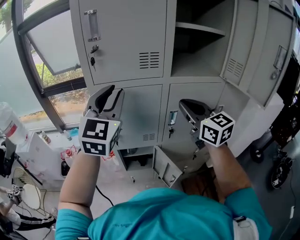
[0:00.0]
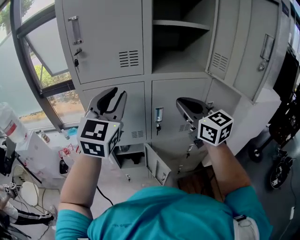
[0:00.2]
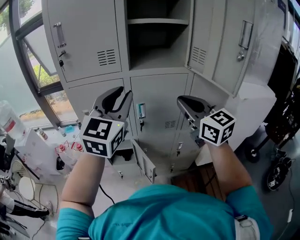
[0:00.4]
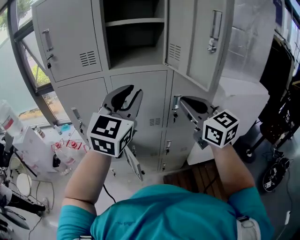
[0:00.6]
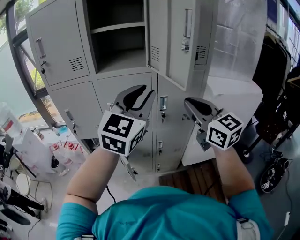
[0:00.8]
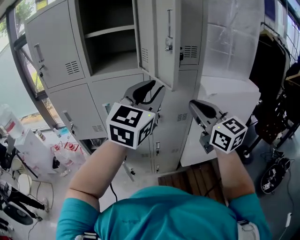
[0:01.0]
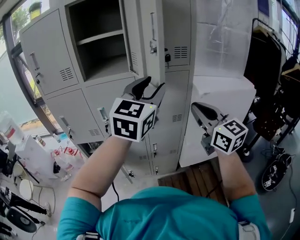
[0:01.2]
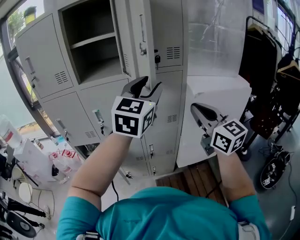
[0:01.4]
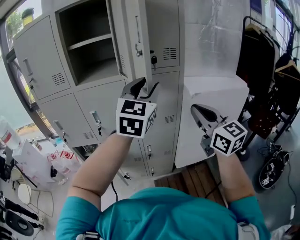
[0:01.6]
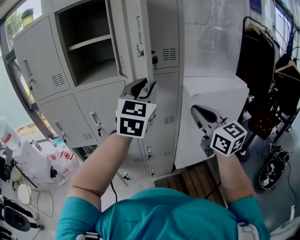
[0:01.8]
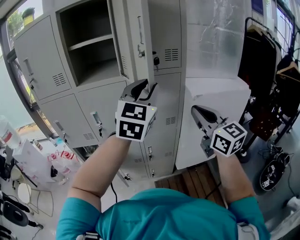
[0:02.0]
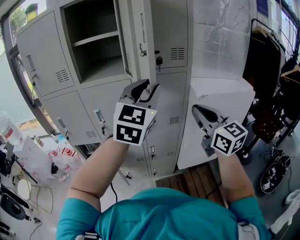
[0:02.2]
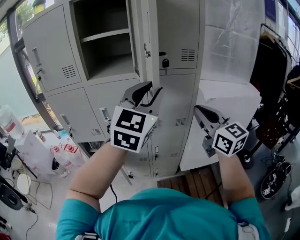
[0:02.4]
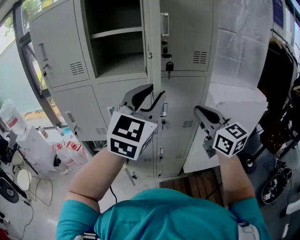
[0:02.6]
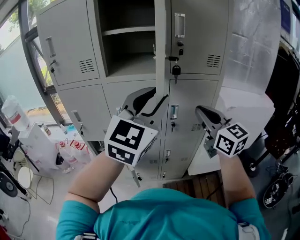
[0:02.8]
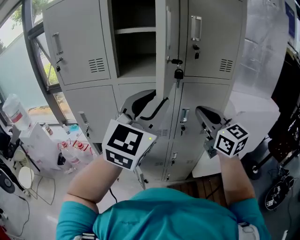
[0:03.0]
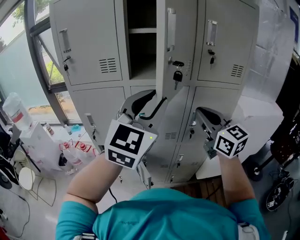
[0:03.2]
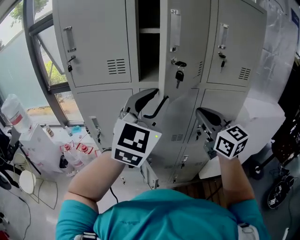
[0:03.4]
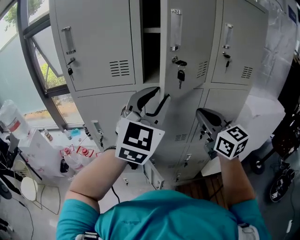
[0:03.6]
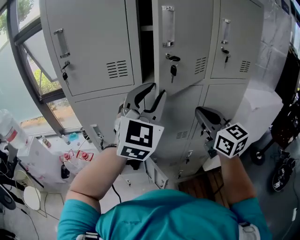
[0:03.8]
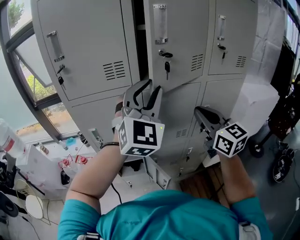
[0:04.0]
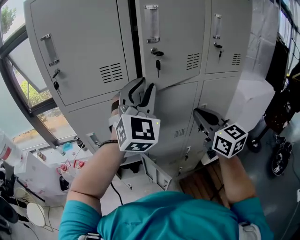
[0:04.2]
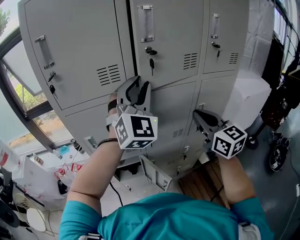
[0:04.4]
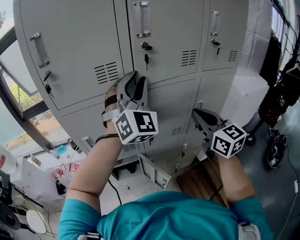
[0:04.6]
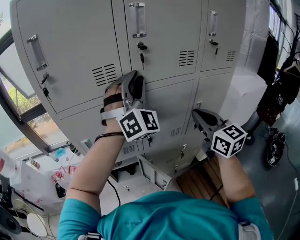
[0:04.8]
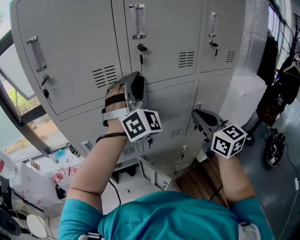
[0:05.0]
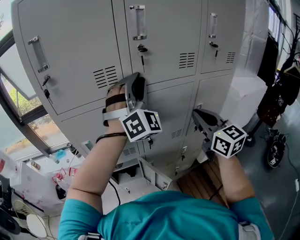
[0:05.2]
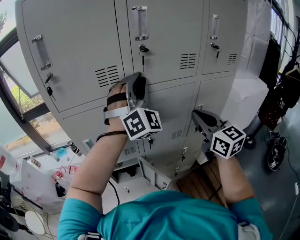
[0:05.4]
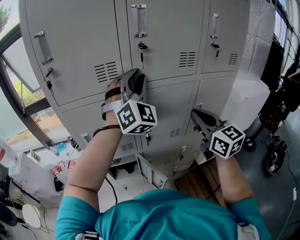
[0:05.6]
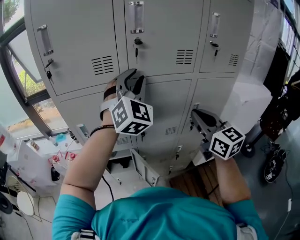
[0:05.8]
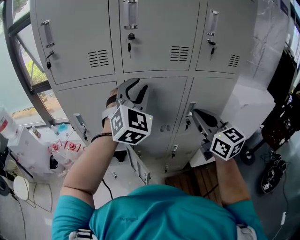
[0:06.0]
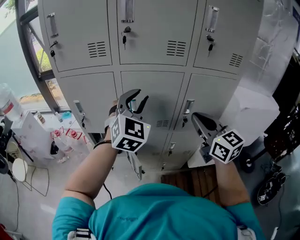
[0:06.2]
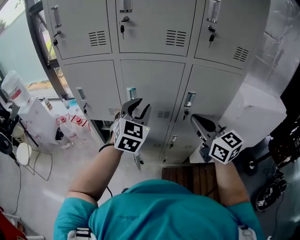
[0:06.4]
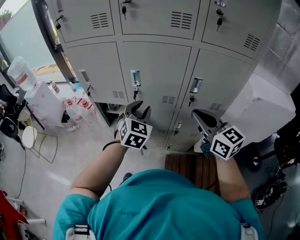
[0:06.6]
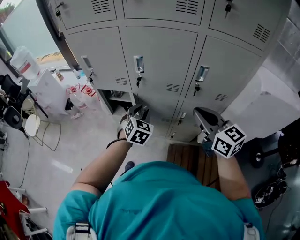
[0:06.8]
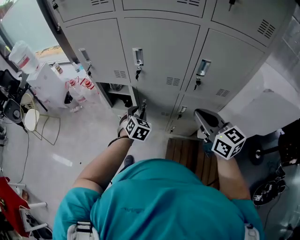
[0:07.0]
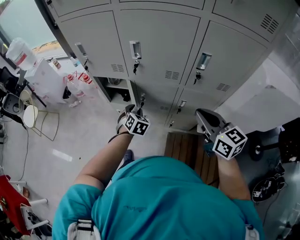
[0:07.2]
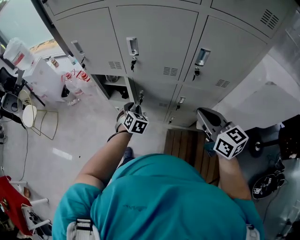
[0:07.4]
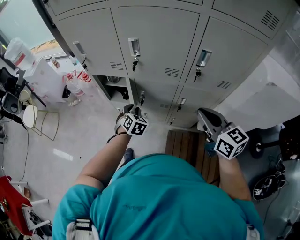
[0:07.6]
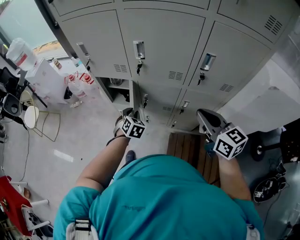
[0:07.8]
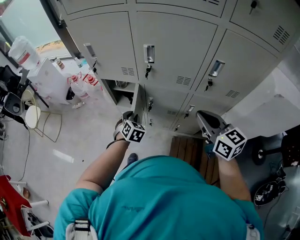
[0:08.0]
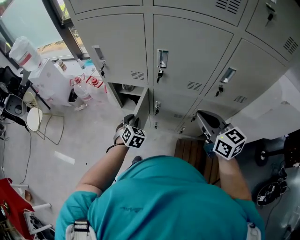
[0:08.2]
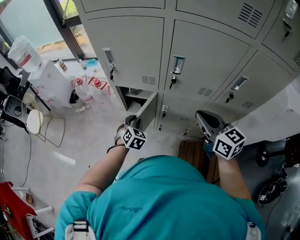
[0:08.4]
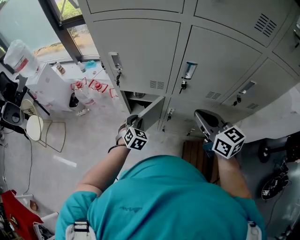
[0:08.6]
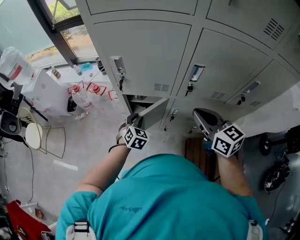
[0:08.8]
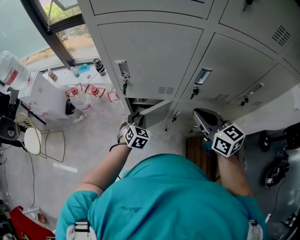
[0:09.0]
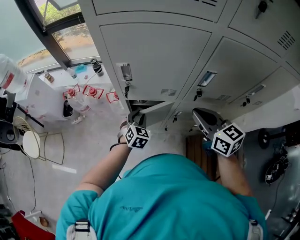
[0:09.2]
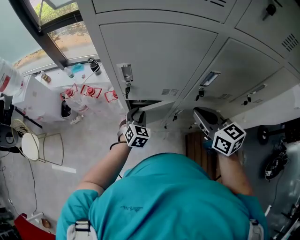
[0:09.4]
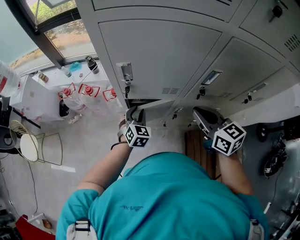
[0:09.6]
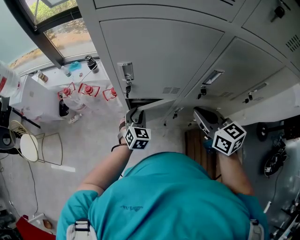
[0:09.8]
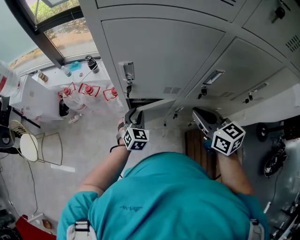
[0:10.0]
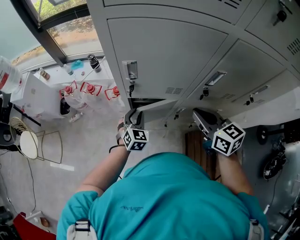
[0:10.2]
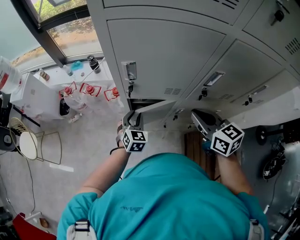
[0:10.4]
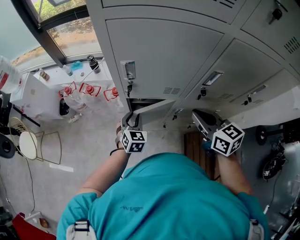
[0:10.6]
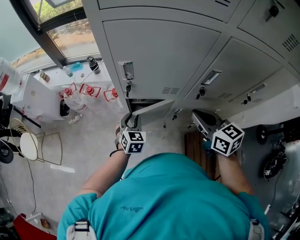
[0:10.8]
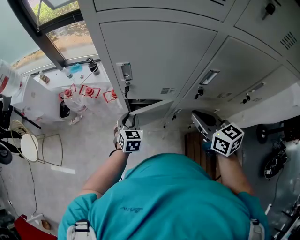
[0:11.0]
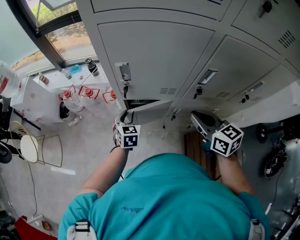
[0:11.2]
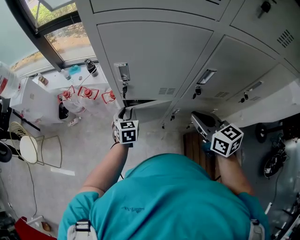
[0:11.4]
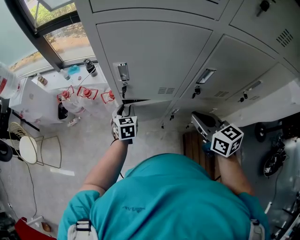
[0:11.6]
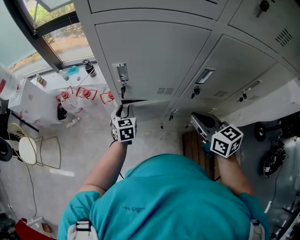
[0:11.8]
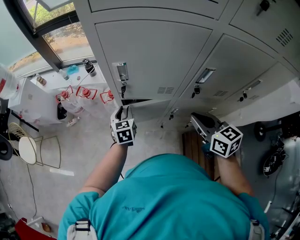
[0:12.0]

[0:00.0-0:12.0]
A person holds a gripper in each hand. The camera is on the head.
0:00.0 to 0:01.6: The two grippers travel together, to the right, roughly 50 cm. The left gripper opens up.
0:01.6 to 0:03.0: The right gripper moves to the left and forward, roughly 20 cm. Meanwhile the left gripper is displaced to the left by roughly 20 cm.
0:03.0 to 0:04.4: The right gripper heads to the left, covering approximately 15 cm. Meanwhile the left gripper moves forward and to the left, approximately 25 cm, and swivels roughly 20 degrees.
0:04.4 to 0:06.0: The right gripper is displaced to the right by approximately 5 cm; the left gripper goes about 10 cm to the right and downward.
0:06.0 to 0:07.6: The left gripper travels downward by approximately 50 cm, and tilts its fingers roughly 40 degrees downward, while the right gripper goes approximately 20 cm downward, and turns by approximately 30 degrees.
0:07.6 to 0:09.0: The two grippers go about 30 cm to the left and forward.
0:09.0 to 0:10.4: The right gripper moves approximately 5 cm.
0:10.4 to 0:12.0: The left gripper changes place by some 5 cm, and swivels about 30 degrees.

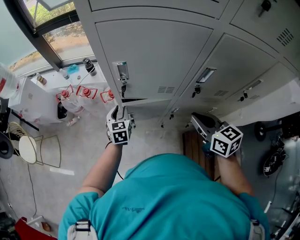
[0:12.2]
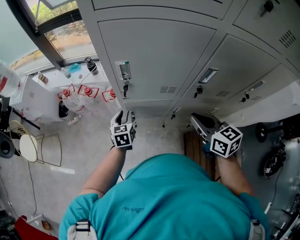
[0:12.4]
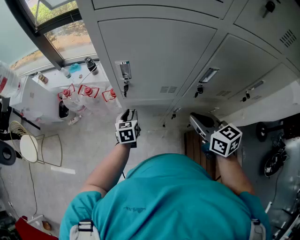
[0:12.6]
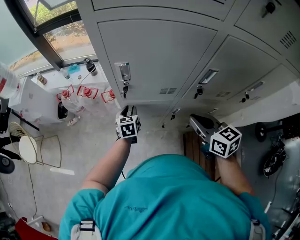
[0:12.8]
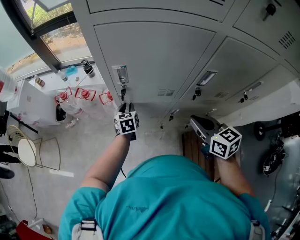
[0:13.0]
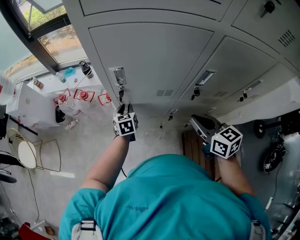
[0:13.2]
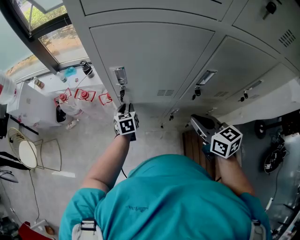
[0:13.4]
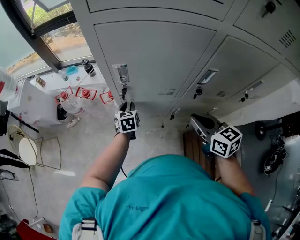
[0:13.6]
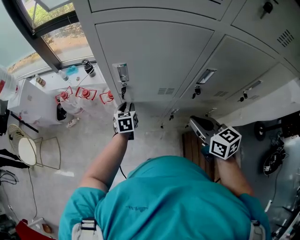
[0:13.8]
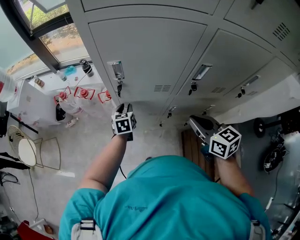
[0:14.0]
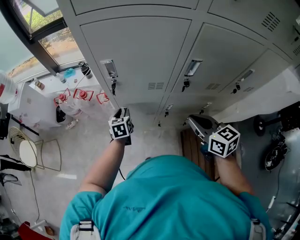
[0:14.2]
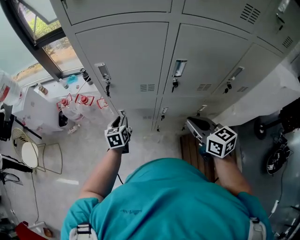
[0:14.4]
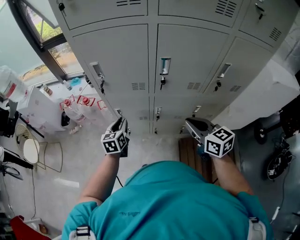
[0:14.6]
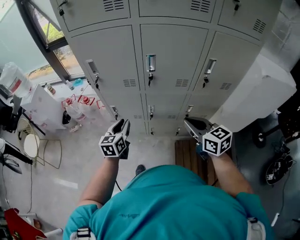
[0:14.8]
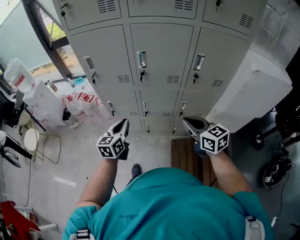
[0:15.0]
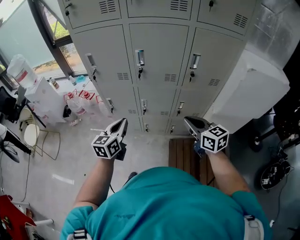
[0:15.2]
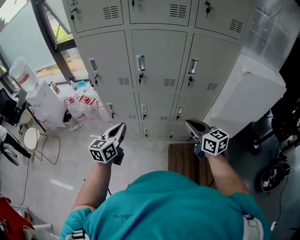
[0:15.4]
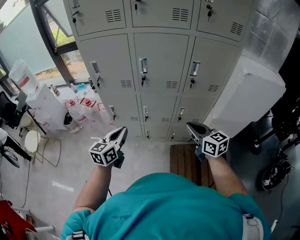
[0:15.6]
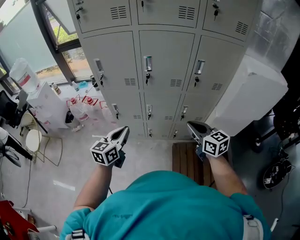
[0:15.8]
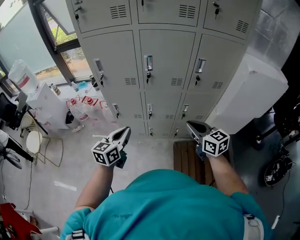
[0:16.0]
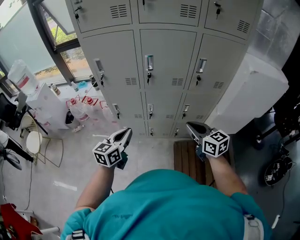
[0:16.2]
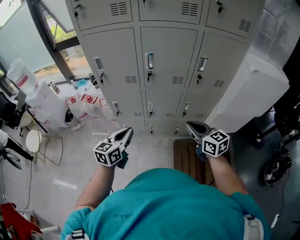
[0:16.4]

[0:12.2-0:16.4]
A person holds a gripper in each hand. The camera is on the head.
0:12.2 to 0:13.6: The left gripper shifts by roughly 5 cm.
0:13.6 to 0:15.0: The left gripper moves backward, upward and to the right, roughly 40 cm, and rotates about 30 degrees. Meanwhile the right gripper travels backward and to the right by some 30 cm.
0:15.0 to 0:16.4: The left gripper goes approximately 5 cm backward.

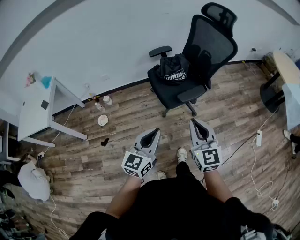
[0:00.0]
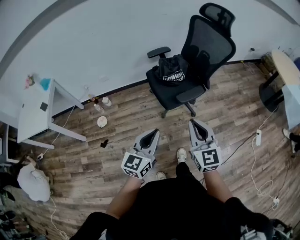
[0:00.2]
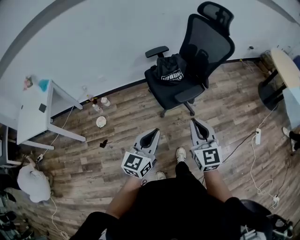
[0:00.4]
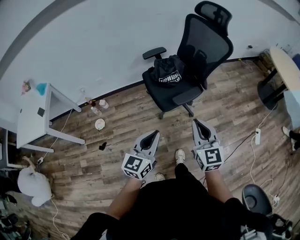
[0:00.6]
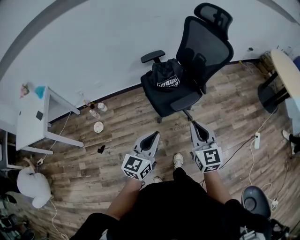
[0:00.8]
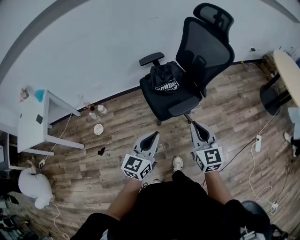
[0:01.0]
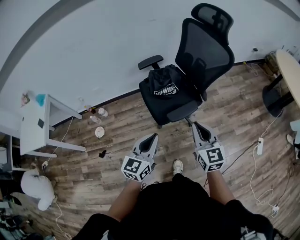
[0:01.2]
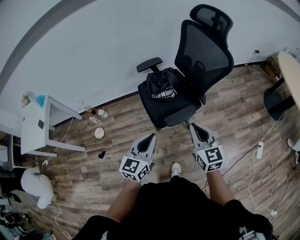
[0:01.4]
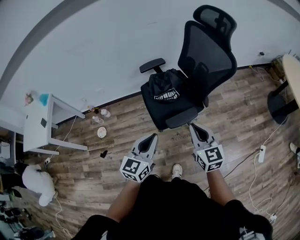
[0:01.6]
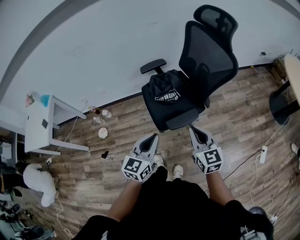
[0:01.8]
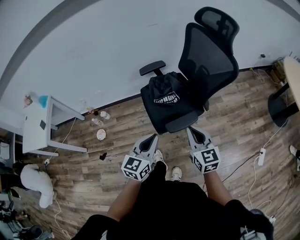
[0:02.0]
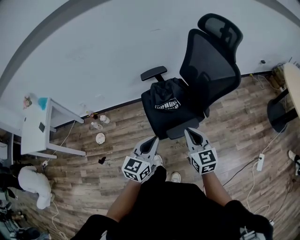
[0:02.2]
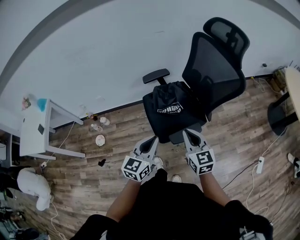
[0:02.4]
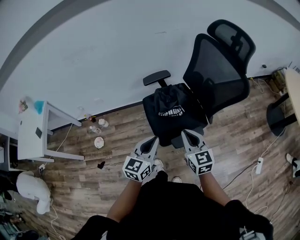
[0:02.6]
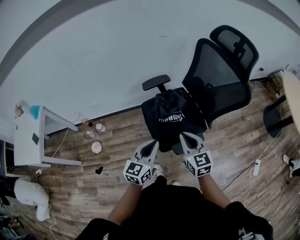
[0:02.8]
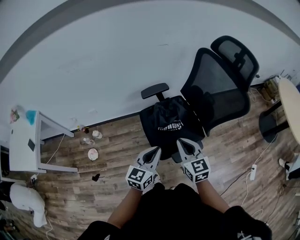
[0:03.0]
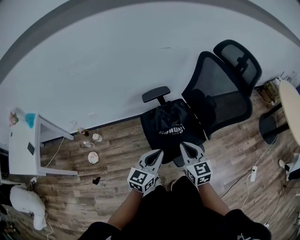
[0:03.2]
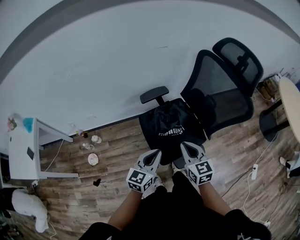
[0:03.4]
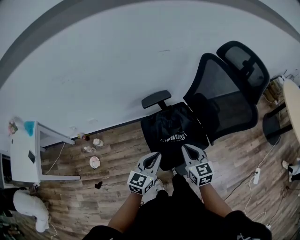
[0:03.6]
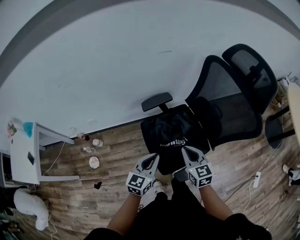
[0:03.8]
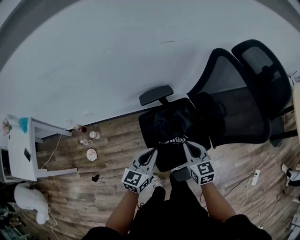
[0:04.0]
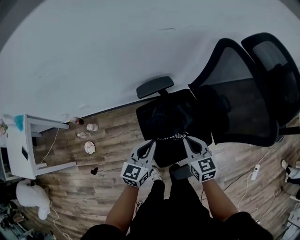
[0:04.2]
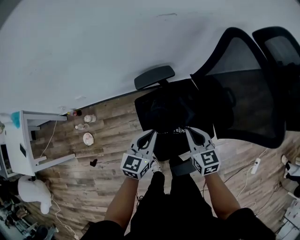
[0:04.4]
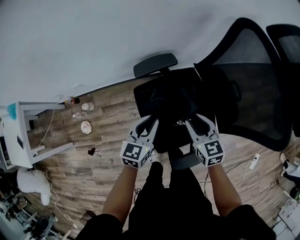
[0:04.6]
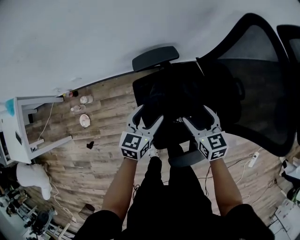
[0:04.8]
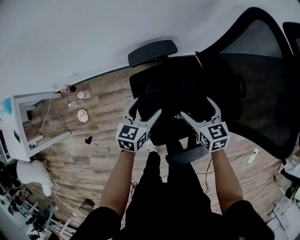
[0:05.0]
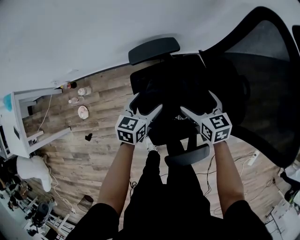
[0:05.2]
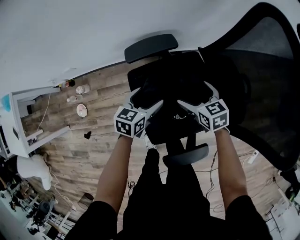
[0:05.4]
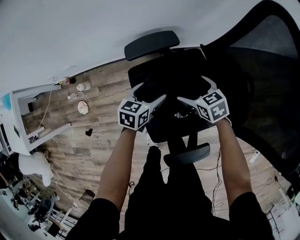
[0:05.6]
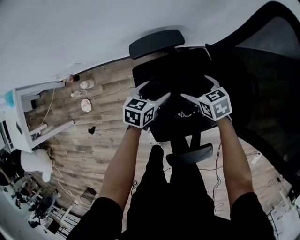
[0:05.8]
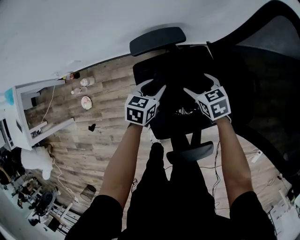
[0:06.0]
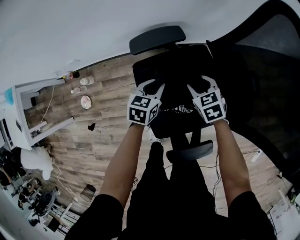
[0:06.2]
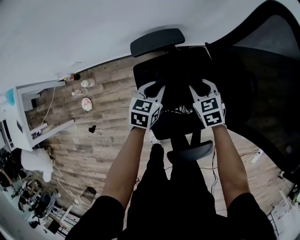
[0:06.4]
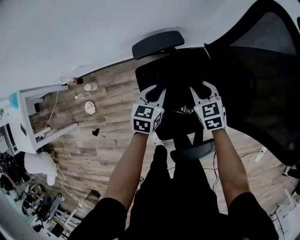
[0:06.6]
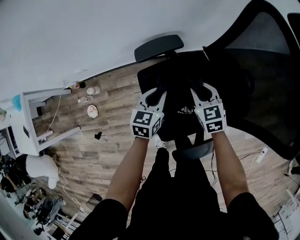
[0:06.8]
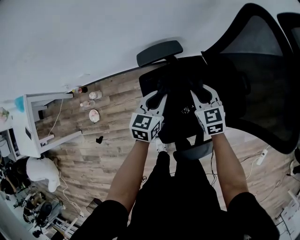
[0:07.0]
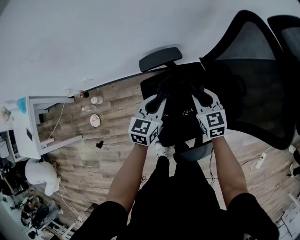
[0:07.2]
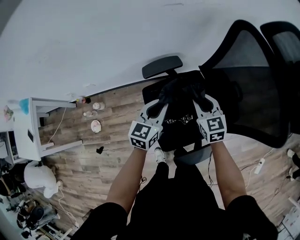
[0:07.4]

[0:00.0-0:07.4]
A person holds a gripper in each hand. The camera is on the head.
0:00.0 to 0:01.4: Both grippers travel together forward and to the right, about 20 cm.
0:01.4 to 0:03.0: The grippers both shift forward and to the left by approximately 20 cm.
0:03.0 to 0:04.4: Both grippers travel together forward and downward, roughly 25 cm.
0:04.4 to 0:06.0: Both grippers travel together downward and forward, about 20 cm. The right gripper swivels approximately 30 degrees, and opens its fingers. The left gripper swivels about 20 degrees, and opens up.
0:06.0 to 0:07.4: Both grippers move upward, some 15 cm. The left gripper swivels roughly 20 degrees, while the right gripper swivels about 30 degrees, and closes.
